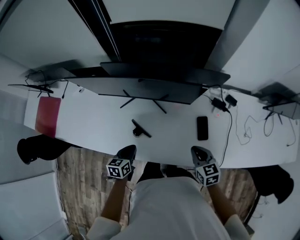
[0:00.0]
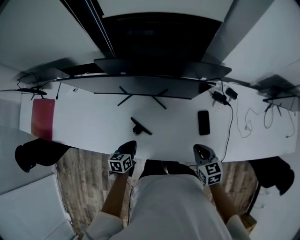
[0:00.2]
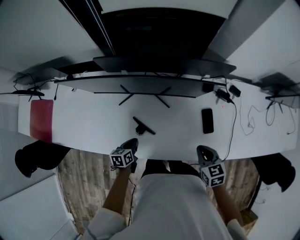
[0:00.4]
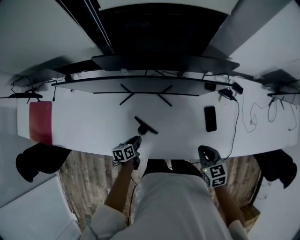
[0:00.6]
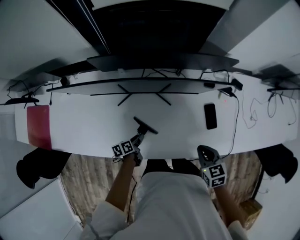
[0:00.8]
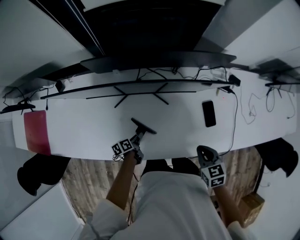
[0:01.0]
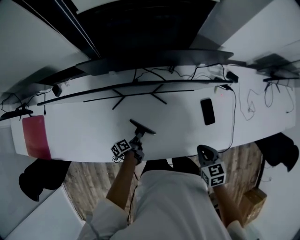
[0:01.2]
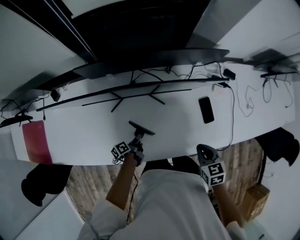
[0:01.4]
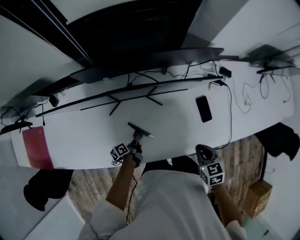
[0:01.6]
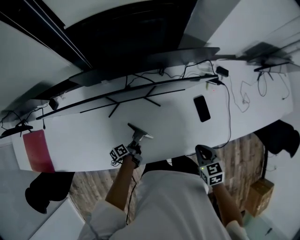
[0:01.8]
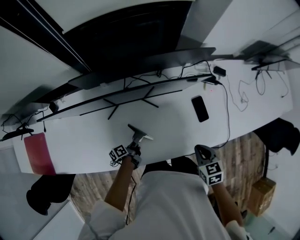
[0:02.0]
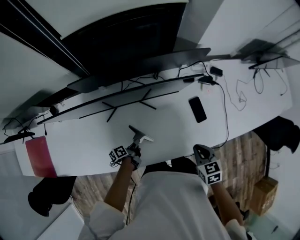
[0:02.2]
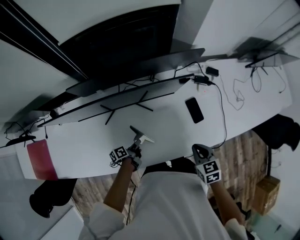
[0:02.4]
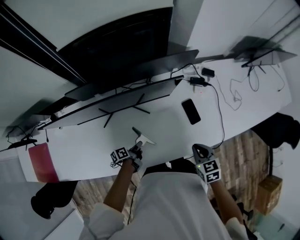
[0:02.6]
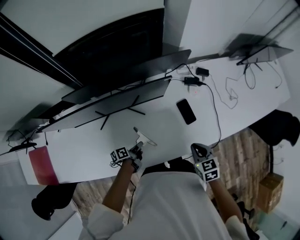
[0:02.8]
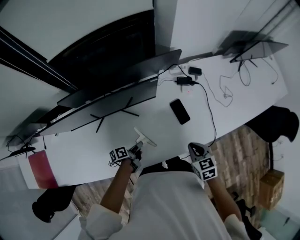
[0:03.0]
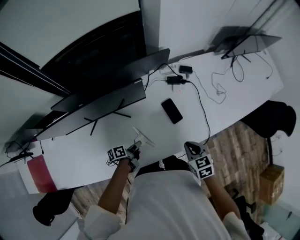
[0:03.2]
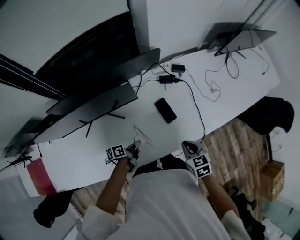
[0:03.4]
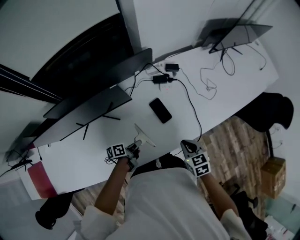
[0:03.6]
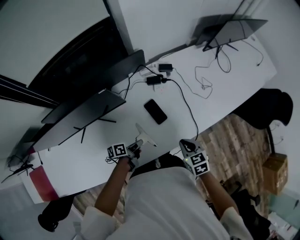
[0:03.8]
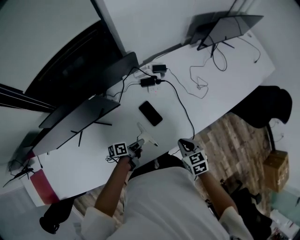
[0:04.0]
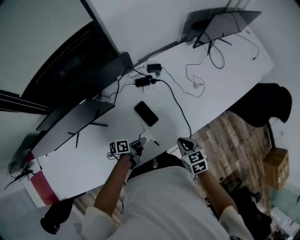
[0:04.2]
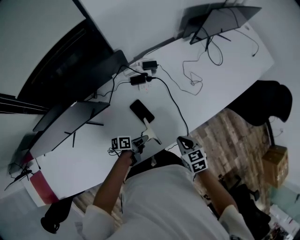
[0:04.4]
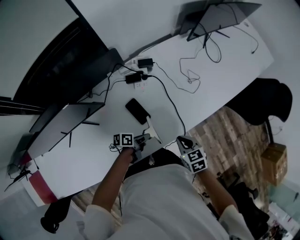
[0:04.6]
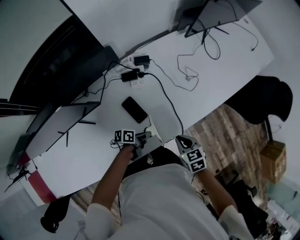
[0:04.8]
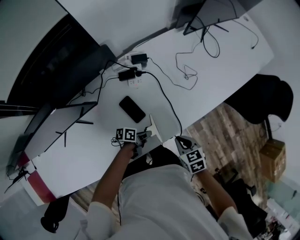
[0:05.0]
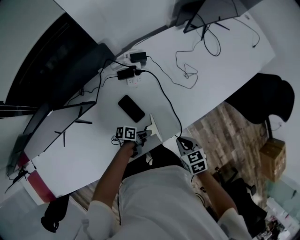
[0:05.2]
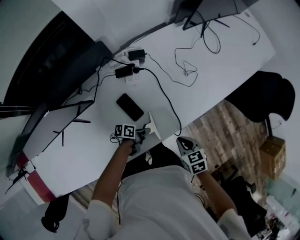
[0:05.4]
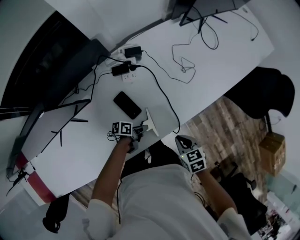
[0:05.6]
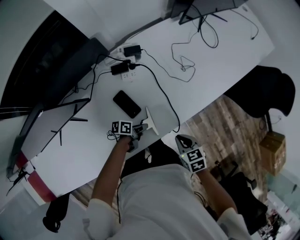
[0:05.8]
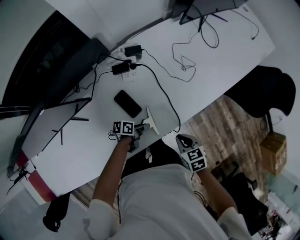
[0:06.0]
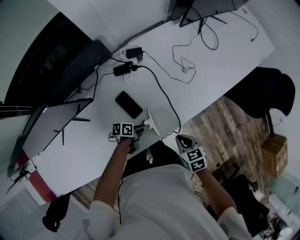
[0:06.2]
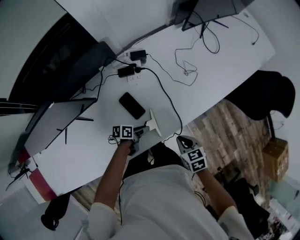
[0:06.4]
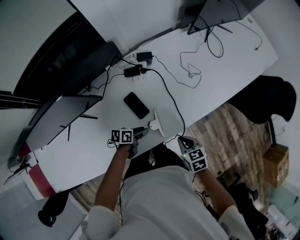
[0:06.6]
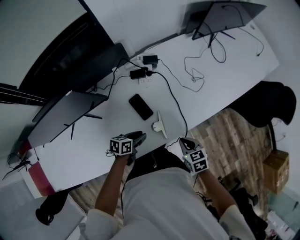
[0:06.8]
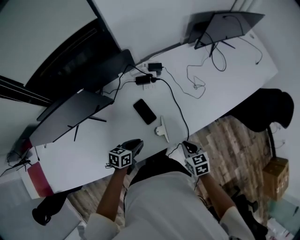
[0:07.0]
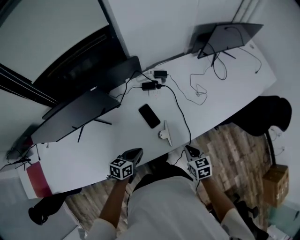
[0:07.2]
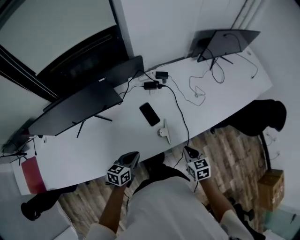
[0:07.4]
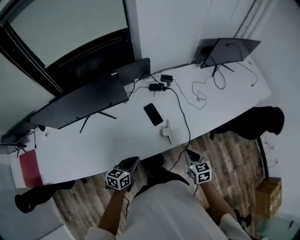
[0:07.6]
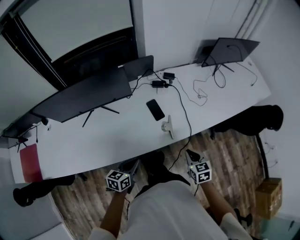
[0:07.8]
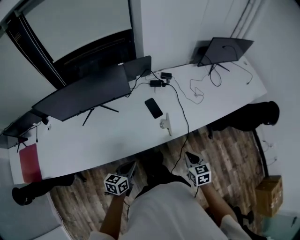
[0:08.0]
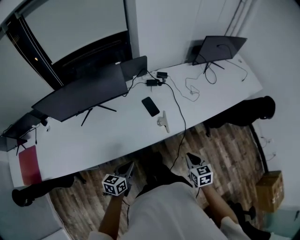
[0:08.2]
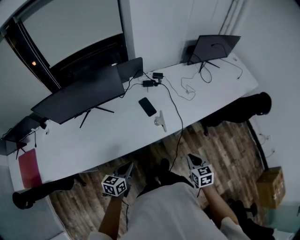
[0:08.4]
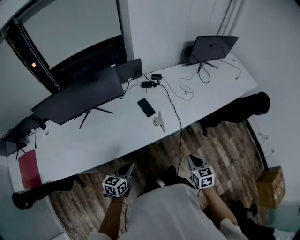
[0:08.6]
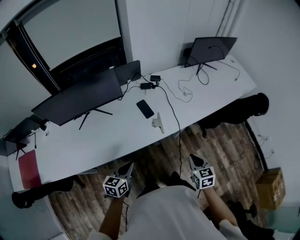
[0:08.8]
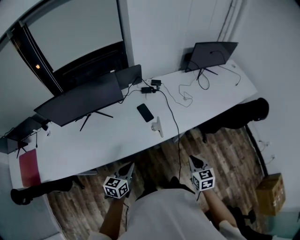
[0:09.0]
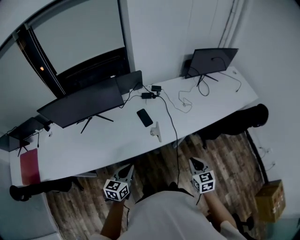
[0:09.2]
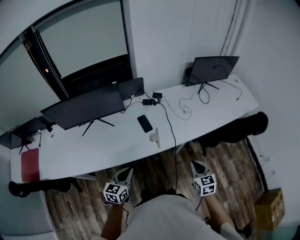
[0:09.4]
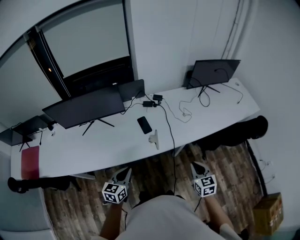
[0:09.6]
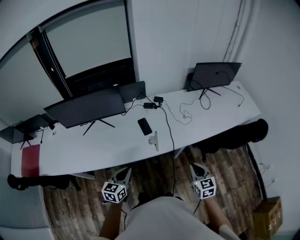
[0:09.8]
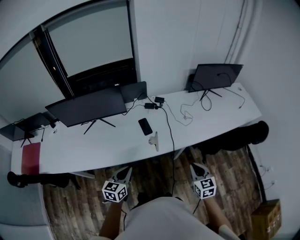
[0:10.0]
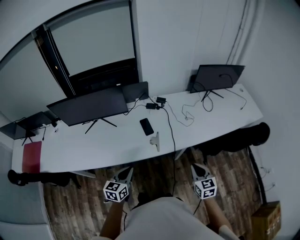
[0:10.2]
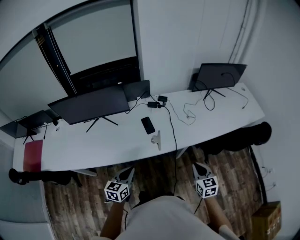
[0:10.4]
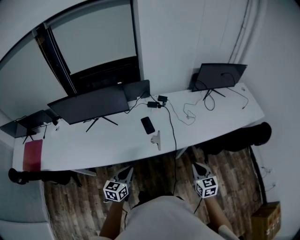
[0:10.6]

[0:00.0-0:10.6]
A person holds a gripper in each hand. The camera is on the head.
0:00.0 to 0:01.6: The left gripper travels downward by approximately 20 cm, rotates around the line of its fingers by approximately 50 degrees, counterclockwise from behind, and opens, then closes again, while the right gripper moves approximately 5 cm, and swivels roughly 20 degrees.
0:01.6 to 0:03.0: The right gripper heads to the right, covering some 10 cm. Meanwhile the left gripper moves to the right and upward, some 15 cm, and changes its angle by roughly 20 degrees.
0:03.0 to 0:04.6: The left gripper goes approximately 30 cm to the right and forward, and rotates roughly 30 degrees; the right gripper travels to the right by some 15 cm.
0:04.6 to 0:06.0: The left gripper goes roughly 5 cm downward, and opens its fingers. The right gripper ends up some 5 cm from where it was.
0:06.0 to 0:07.6: The right gripper travels upward and backward by approximately 10 cm; the left gripper moves upward, backward and to the left, approximately 30 cm, swivels approximately 50 degrees, and closes up.
0:07.6 to 0:09.0: The right gripper travels backward, to the right and upward by some 15 cm. The left gripper shifts about 15 cm backward and upward.
0:09.0 to 0:10.6: The left gripper travels to the right by some 5 cm, while the right gripper heads to the right, covering some 10 cm.

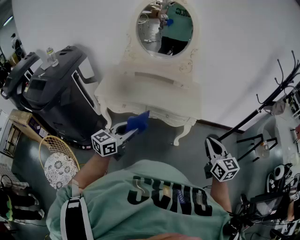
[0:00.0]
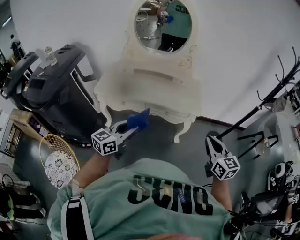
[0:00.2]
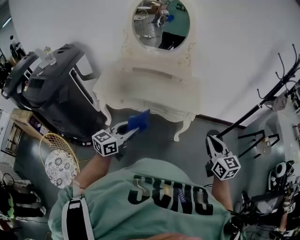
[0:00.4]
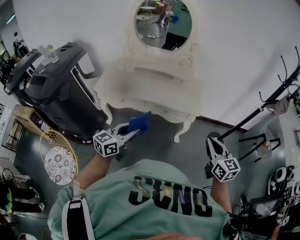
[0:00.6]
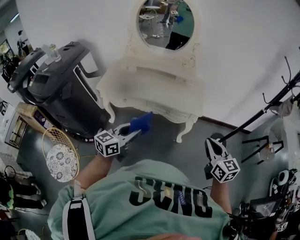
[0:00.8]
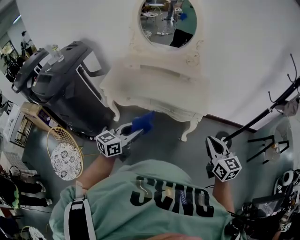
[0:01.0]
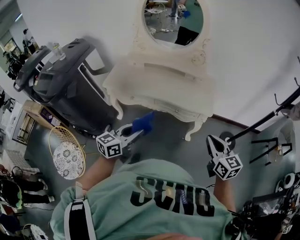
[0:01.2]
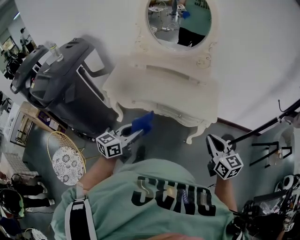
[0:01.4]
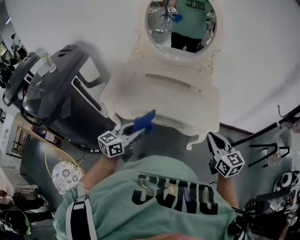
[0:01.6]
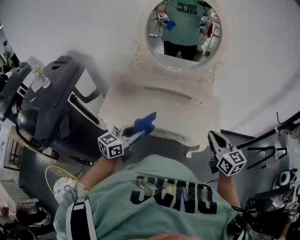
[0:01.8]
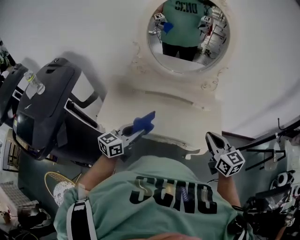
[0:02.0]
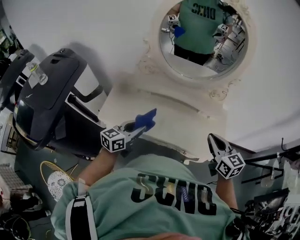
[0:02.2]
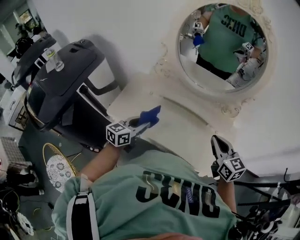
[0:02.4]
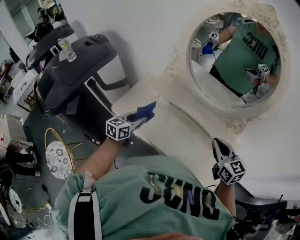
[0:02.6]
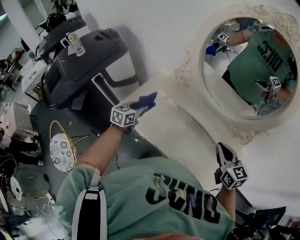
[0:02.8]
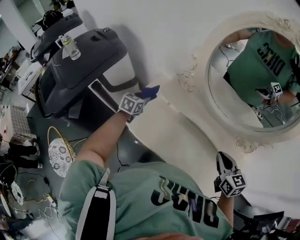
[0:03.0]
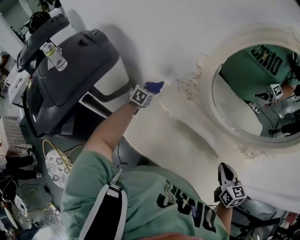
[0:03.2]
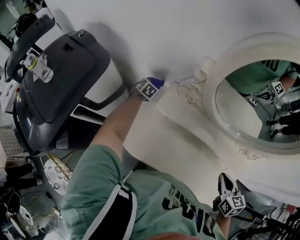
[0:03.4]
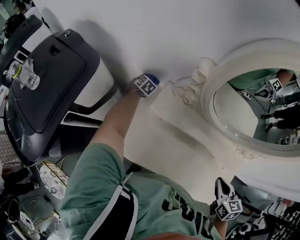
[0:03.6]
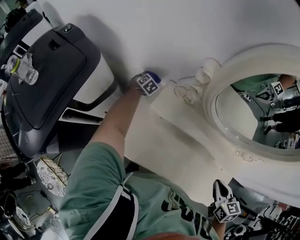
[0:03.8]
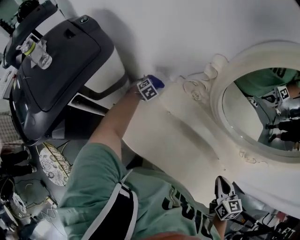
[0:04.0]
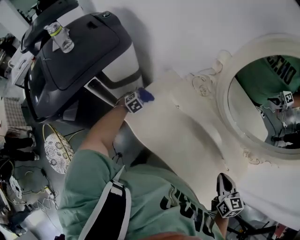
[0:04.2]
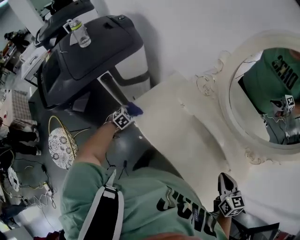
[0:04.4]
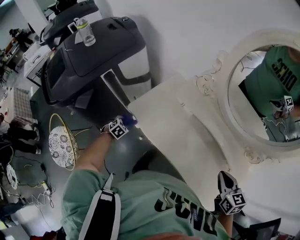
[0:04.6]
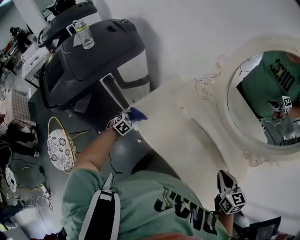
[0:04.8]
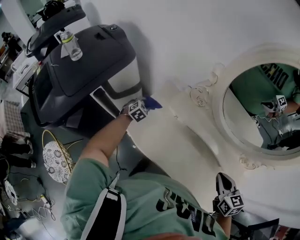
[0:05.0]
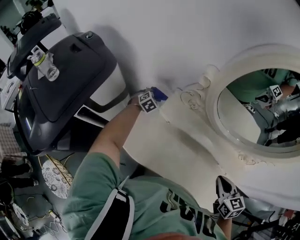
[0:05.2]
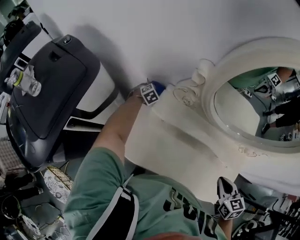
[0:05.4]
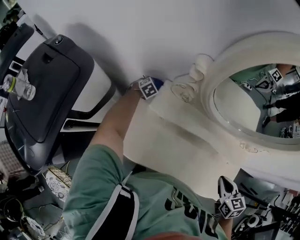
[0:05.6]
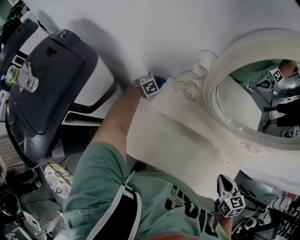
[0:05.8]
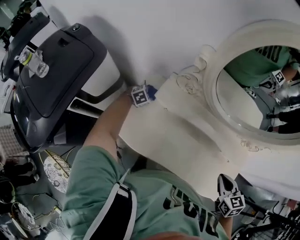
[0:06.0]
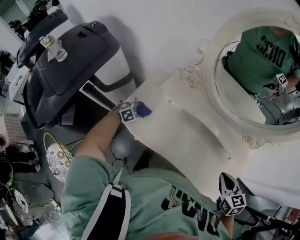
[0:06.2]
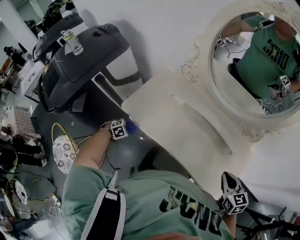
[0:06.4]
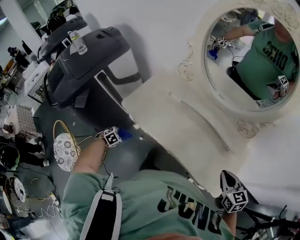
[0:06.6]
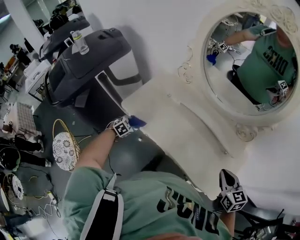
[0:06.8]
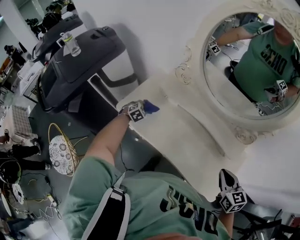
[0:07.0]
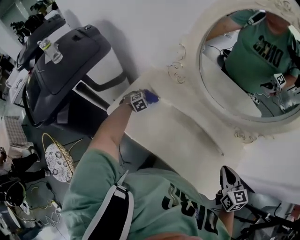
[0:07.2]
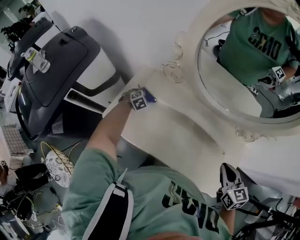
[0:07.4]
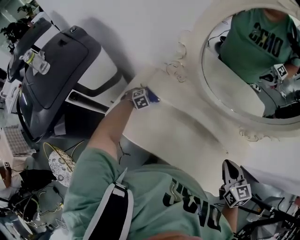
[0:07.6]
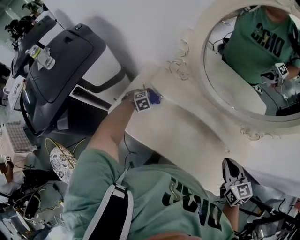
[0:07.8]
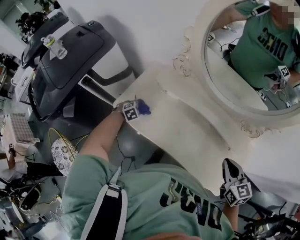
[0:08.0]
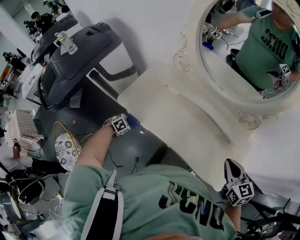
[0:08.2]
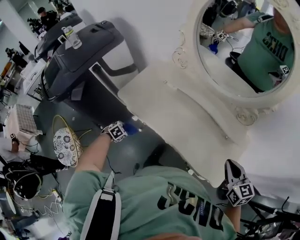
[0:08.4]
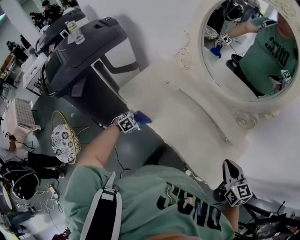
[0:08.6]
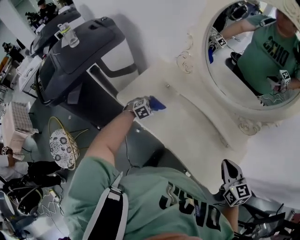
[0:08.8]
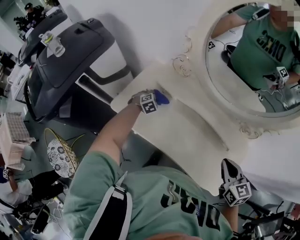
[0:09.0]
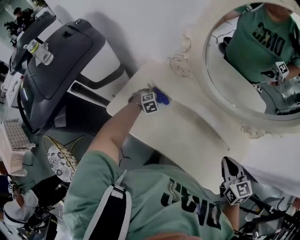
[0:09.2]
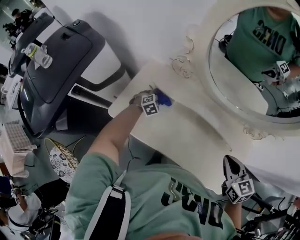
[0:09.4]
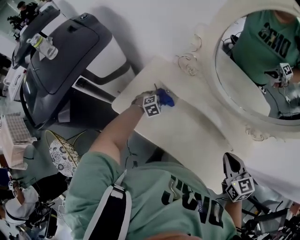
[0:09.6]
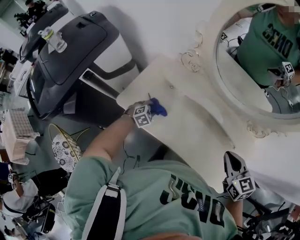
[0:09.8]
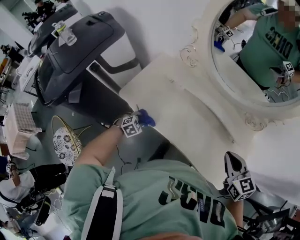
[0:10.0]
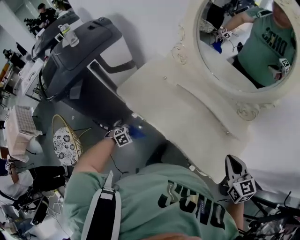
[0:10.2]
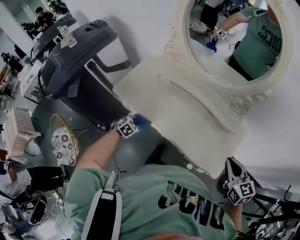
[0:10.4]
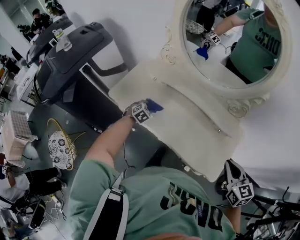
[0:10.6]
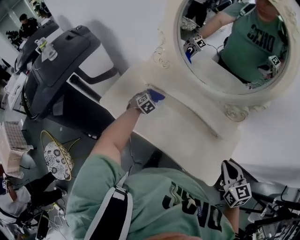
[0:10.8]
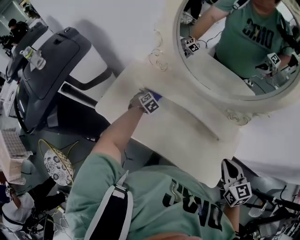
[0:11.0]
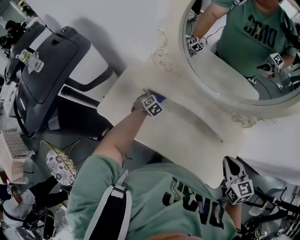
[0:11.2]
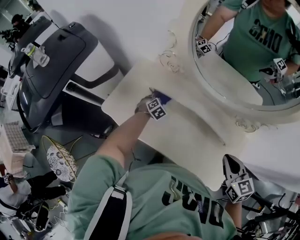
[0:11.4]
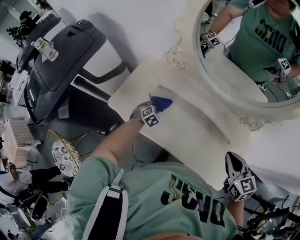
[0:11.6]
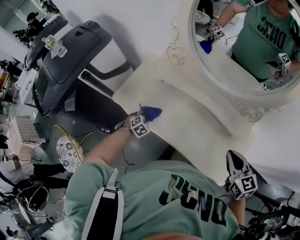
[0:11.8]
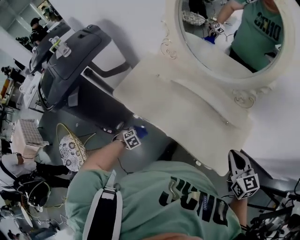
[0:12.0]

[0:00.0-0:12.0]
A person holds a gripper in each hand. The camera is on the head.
0:00.0 to 0:01.6: The two grippers go roughly 20 cm forward and to the left.
0:01.6 to 0:03.0: Both grippers are carried roughly 50 cm. The left gripper angles its fingers downward, by roughly 30 degrees. Meanwhile the right gripper turns by about 30 degrees.
0:03.0 to 0:04.4: The left gripper travels downward and to the left by approximately 20 cm, goes forward and returns, roughly 25 cm each way, and changes its angle by about 30 degrees. Meanwhile the right gripper moves approximately 5 cm.
0:04.4 to 0:06.0: The left gripper goes upward and returns, about 5 cm each way, and rotates approximately 40 degrees.
0:09.0 to 0:10.4: The right gripper shifts by approximately 20 cm. The left gripper ends up roughly 30 cm from where it was.

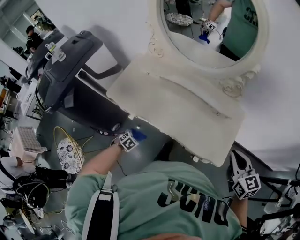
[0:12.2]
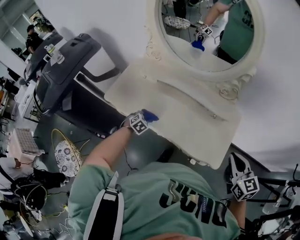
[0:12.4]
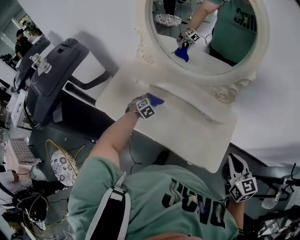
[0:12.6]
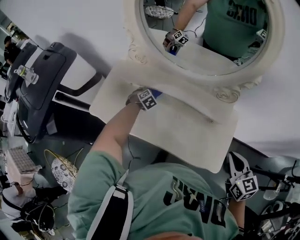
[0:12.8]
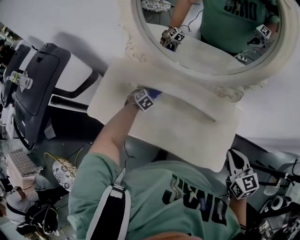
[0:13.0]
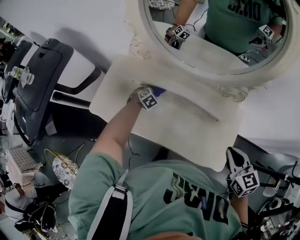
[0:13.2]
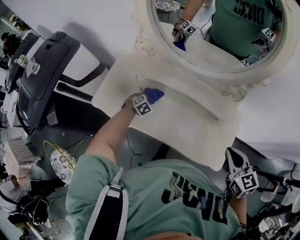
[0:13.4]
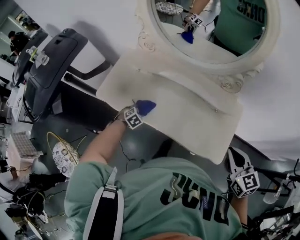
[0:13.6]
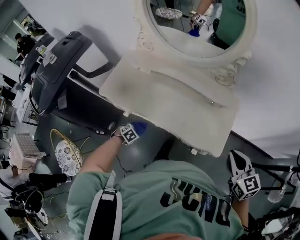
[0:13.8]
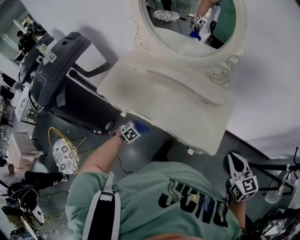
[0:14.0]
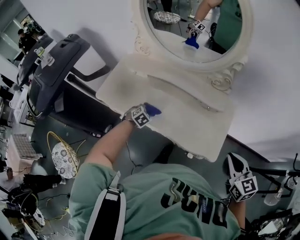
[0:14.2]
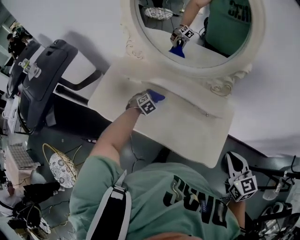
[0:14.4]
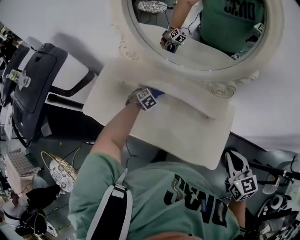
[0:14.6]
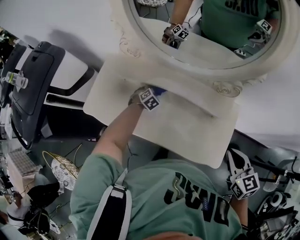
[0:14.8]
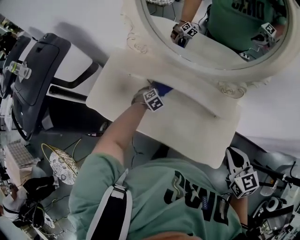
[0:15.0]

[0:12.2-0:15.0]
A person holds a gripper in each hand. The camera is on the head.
0:13.6 to 0:15.0: The left gripper ends up approximately 20 cm from where it was.
